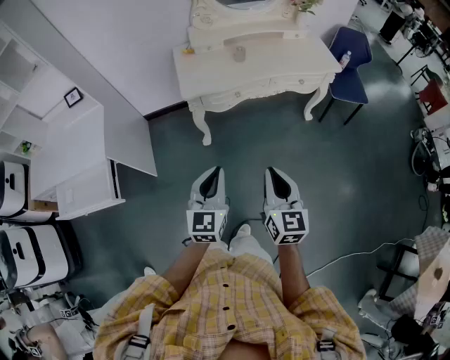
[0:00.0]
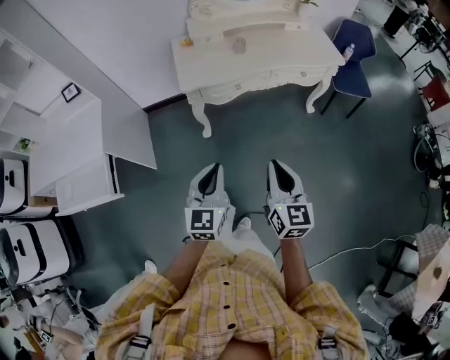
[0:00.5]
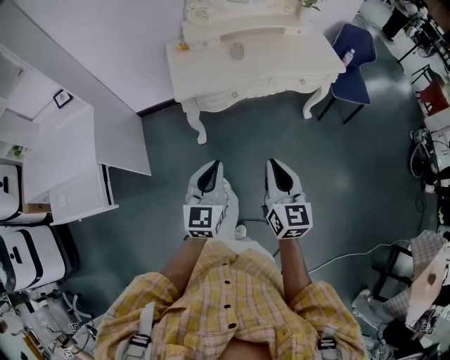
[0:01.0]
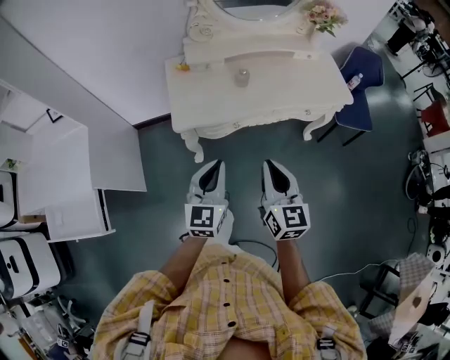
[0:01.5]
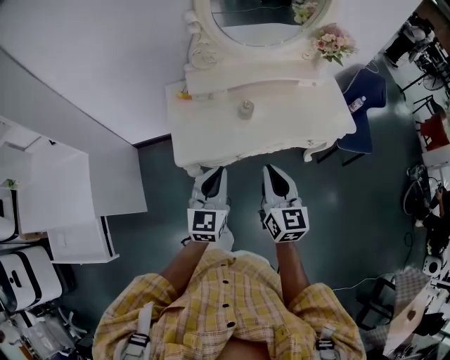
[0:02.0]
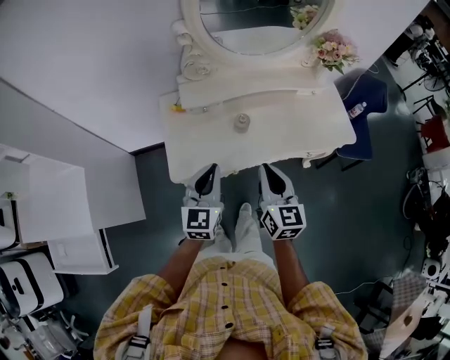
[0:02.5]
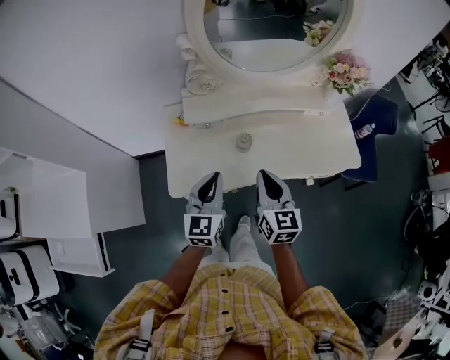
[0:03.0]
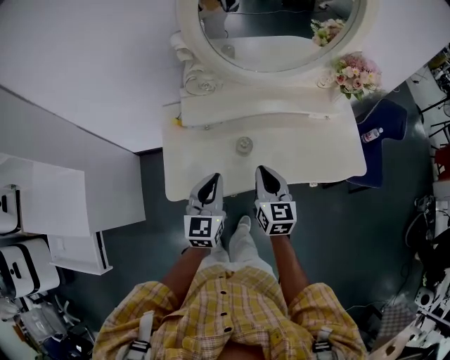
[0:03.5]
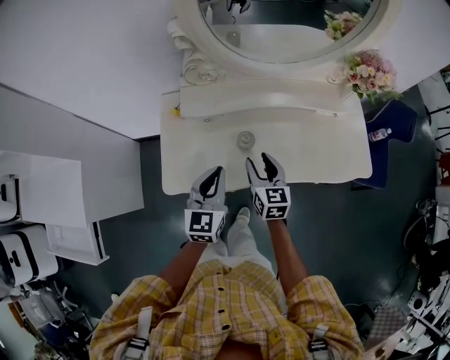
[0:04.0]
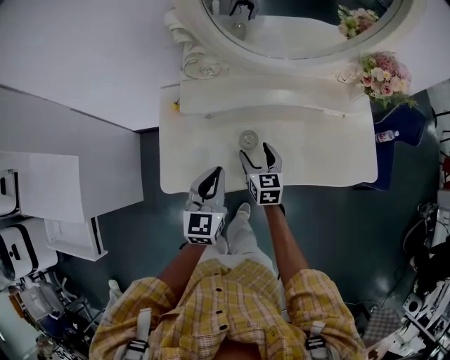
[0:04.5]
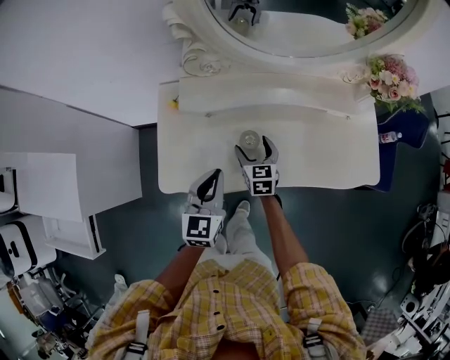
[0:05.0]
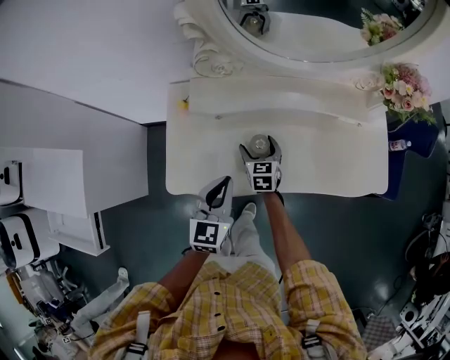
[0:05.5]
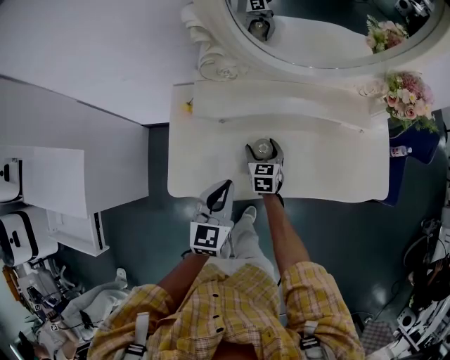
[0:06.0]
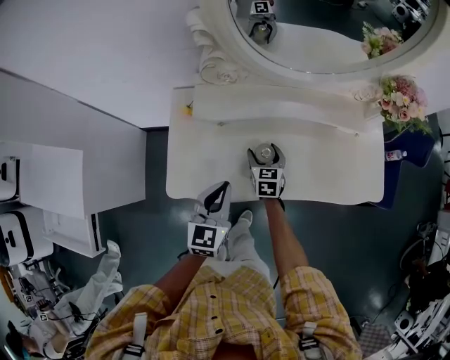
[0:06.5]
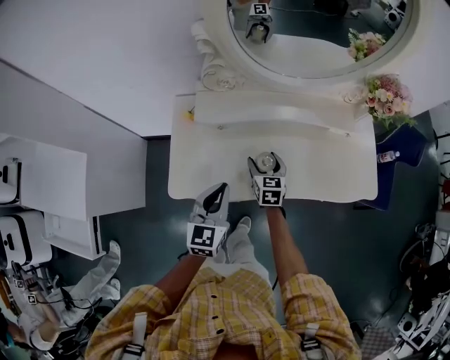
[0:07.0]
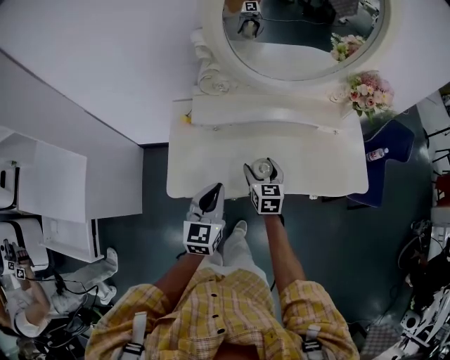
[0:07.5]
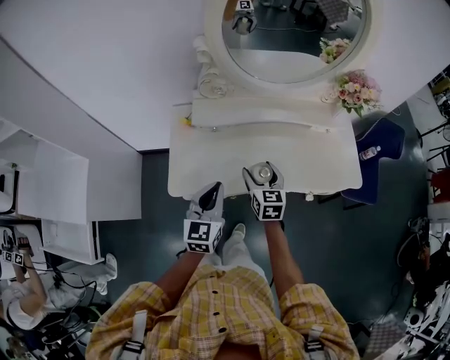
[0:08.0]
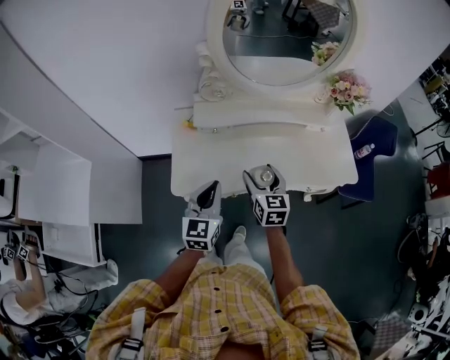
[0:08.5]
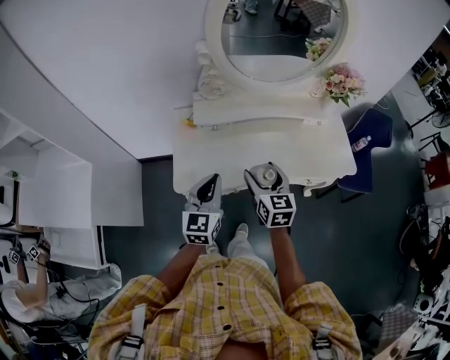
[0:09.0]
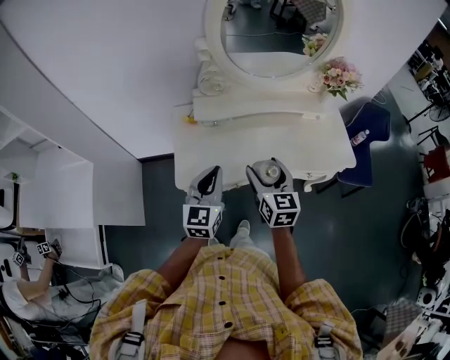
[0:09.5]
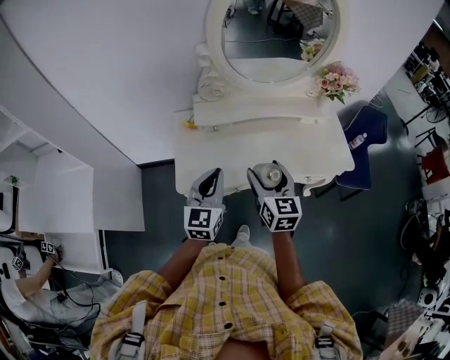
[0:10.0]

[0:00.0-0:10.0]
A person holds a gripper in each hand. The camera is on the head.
0.0 to 2.0 s: Both grippers move forward, roughly 35 cm.
2.0 to 4.0 s: The right gripper goes some 30 cm forward and downward, and opens its fingers. Meanwhile the left gripper is displaced forward by roughly 20 cm.
4.0 to 6.0 s: The left gripper travels downward by approximately 5 cm; the right gripper is displaced downward and forward by approximately 20 cm, and opens up.
6.0 to 8.0 s: The right gripper is displaced upward and backward by approximately 20 cm. Meanwhile the left gripper is displaced upward and backward by about 10 cm.
8.0 to 10.0 s: The left gripper goes about 5 cm upward. Meanwhile the right gripper shifts about 15 cm upward and backward.

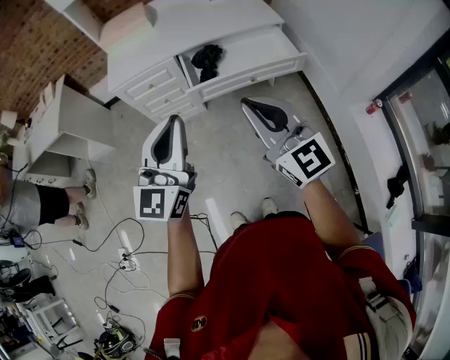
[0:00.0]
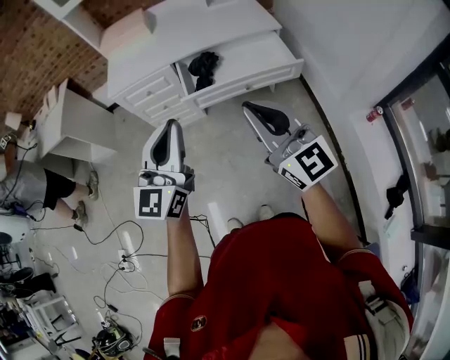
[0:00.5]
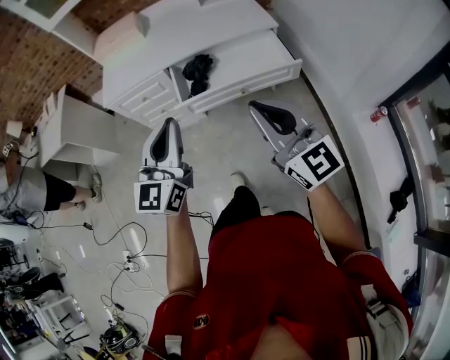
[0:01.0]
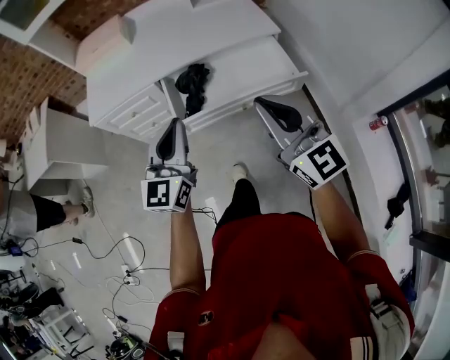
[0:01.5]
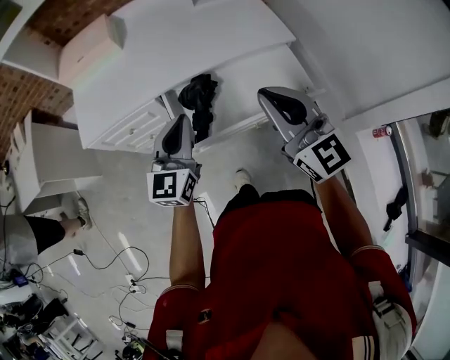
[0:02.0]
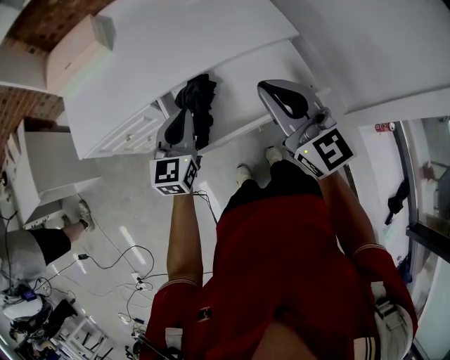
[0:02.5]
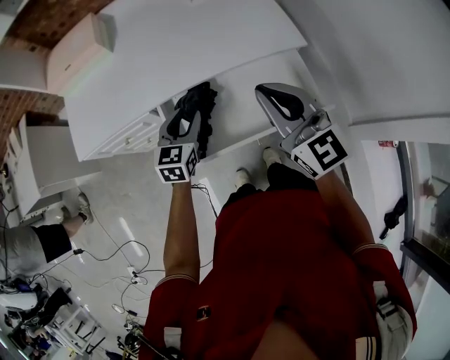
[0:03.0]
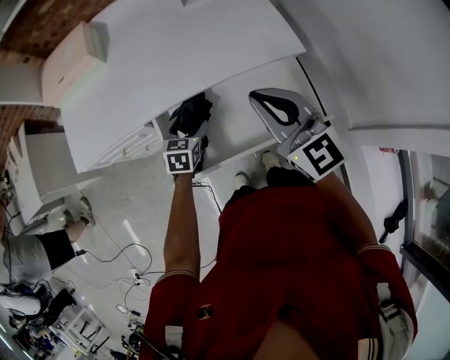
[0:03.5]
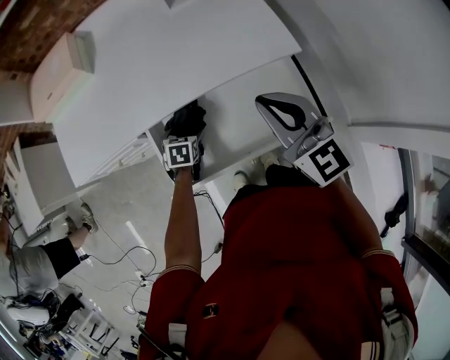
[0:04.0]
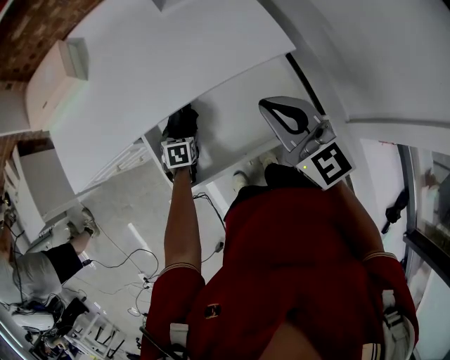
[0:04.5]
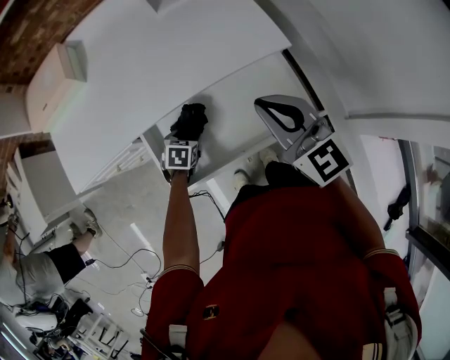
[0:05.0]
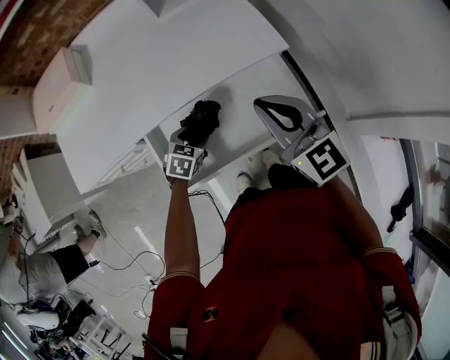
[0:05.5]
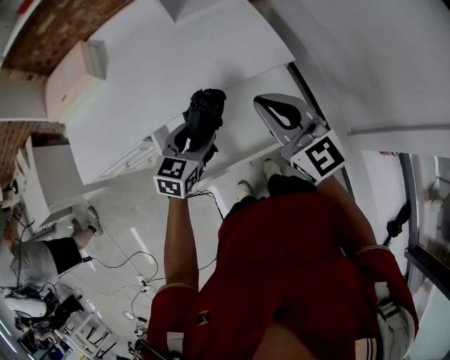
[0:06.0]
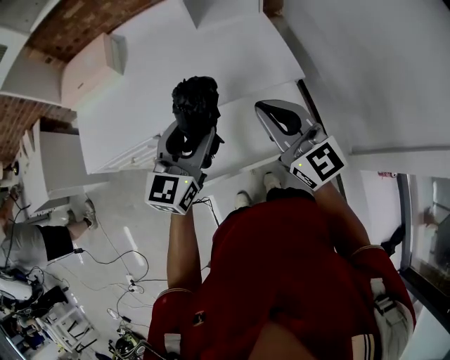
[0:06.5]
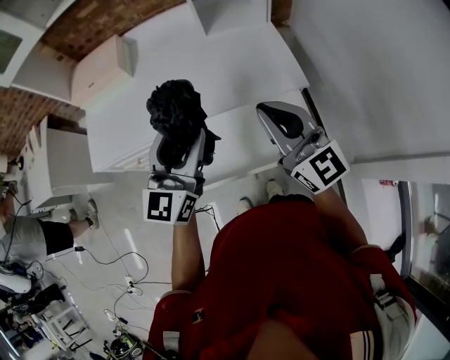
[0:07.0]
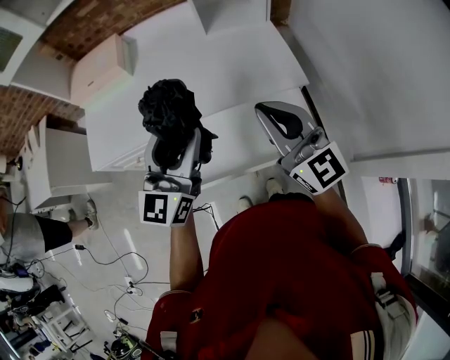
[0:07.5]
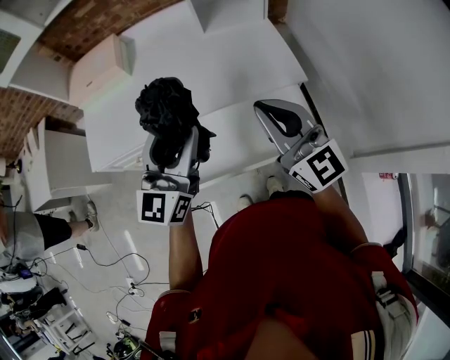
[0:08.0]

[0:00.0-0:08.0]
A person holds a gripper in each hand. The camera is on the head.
0.0 to 2.0 s: The left gripper travels forward and downward by some 40 cm. Meanwhile the right gripper moves forward, approximately 35 cm.
2.0 to 4.0 s: The right gripper is displaced forward, to the right and downward by approximately 20 cm, while the left gripper moves downward and forward, approximately 35 cm, tilts its fingers about 60 degrees downward, and opens.
4.0 to 6.0 s: The left gripper goes some 25 cm upward and to the right, rotates roughly 40 degrees, and closes up.
6.0 to 8.0 s: The left gripper is displaced upward by some 20 cm, and tips its fingers upward by approximately 40 degrees. Meanwhile the right gripper shifts approximately 5 cm upward.

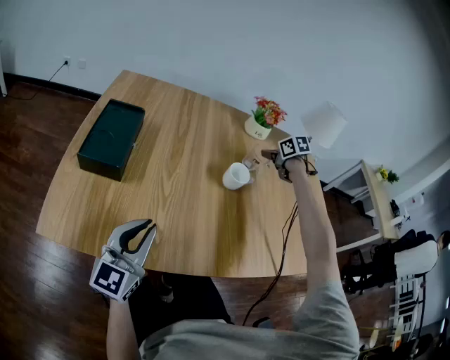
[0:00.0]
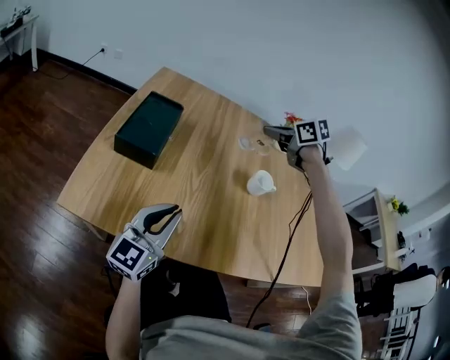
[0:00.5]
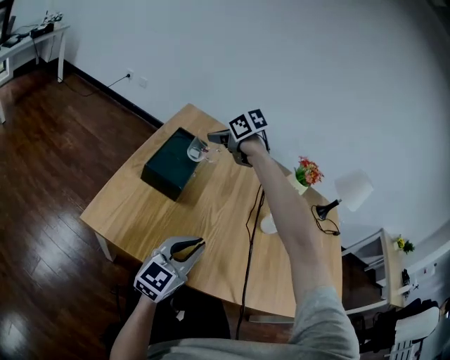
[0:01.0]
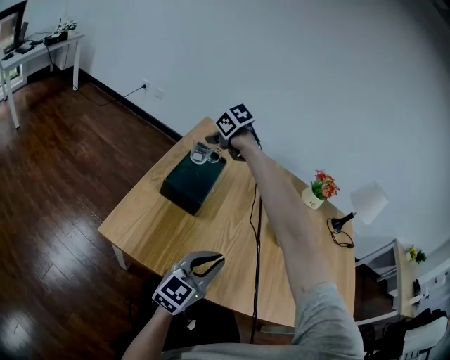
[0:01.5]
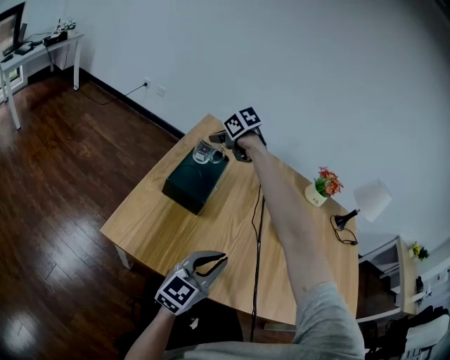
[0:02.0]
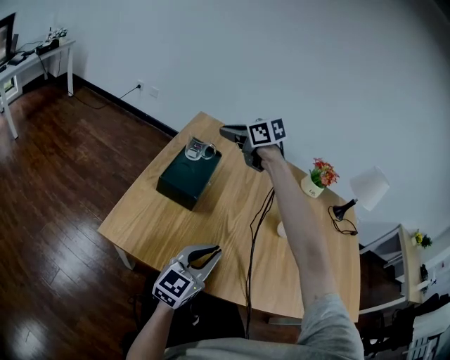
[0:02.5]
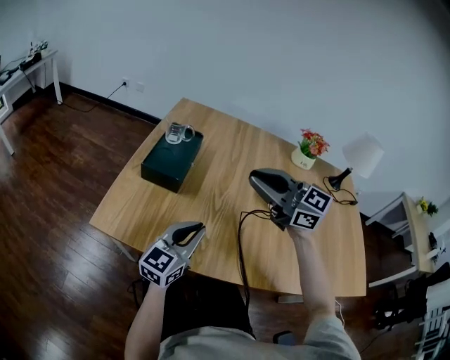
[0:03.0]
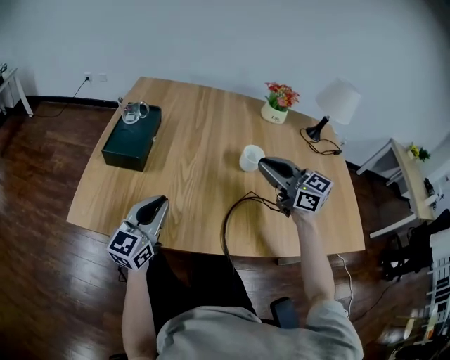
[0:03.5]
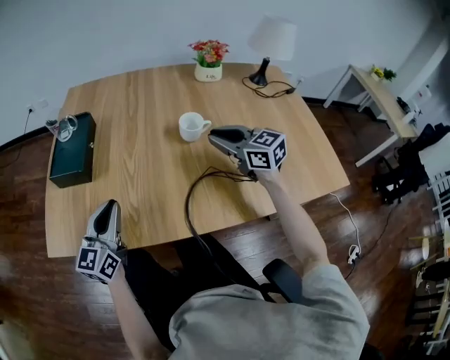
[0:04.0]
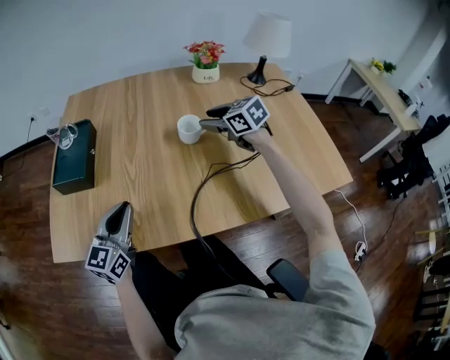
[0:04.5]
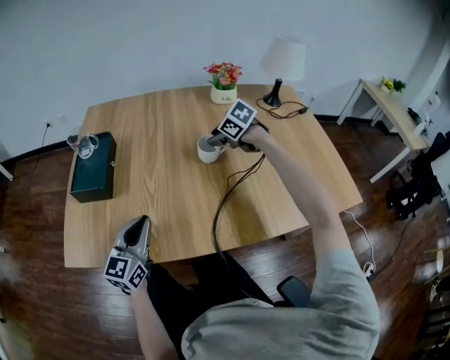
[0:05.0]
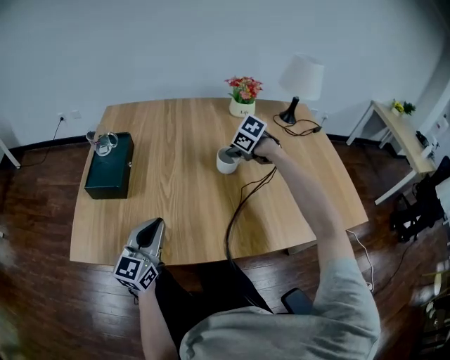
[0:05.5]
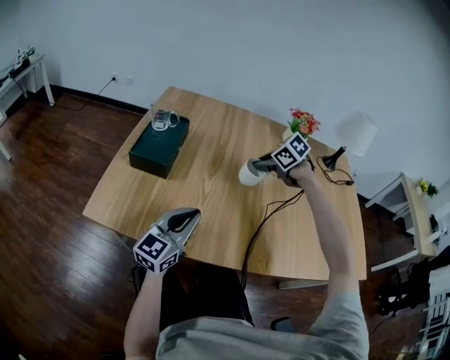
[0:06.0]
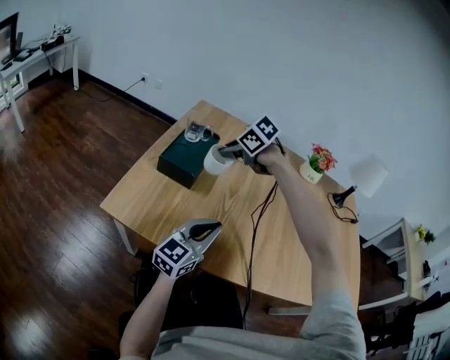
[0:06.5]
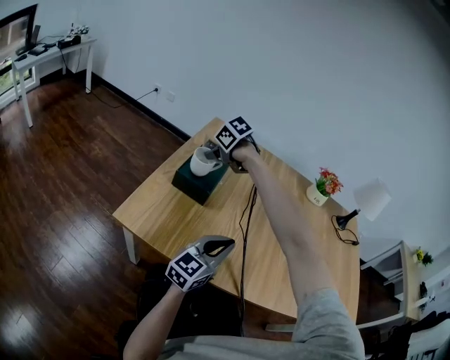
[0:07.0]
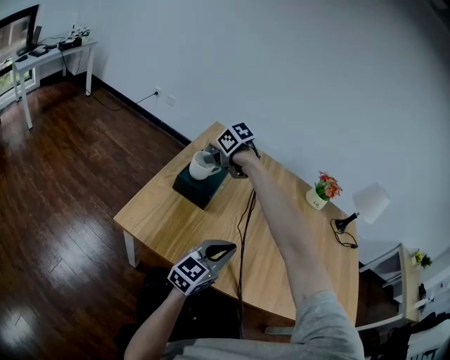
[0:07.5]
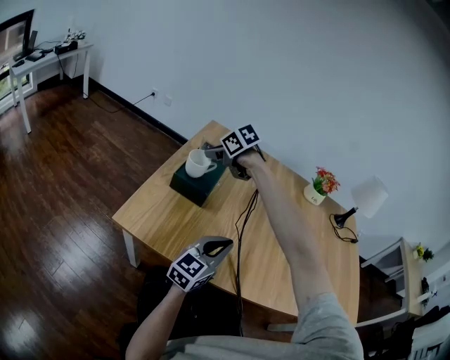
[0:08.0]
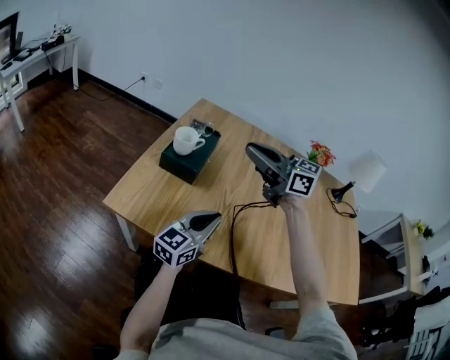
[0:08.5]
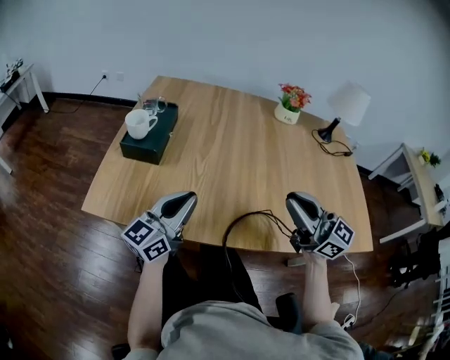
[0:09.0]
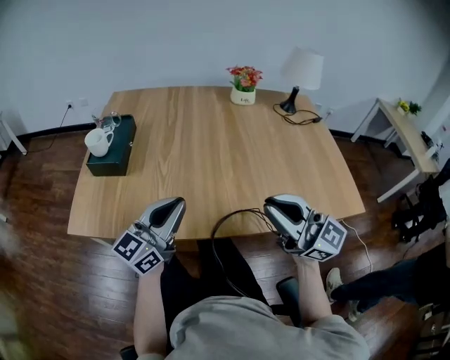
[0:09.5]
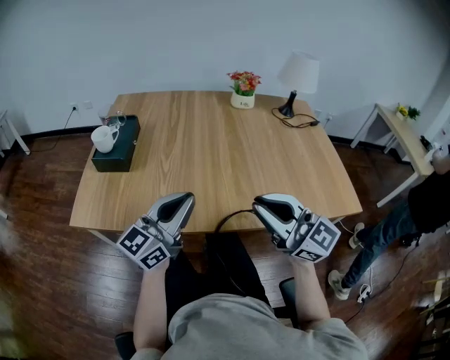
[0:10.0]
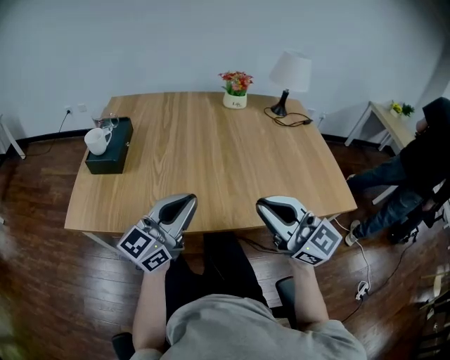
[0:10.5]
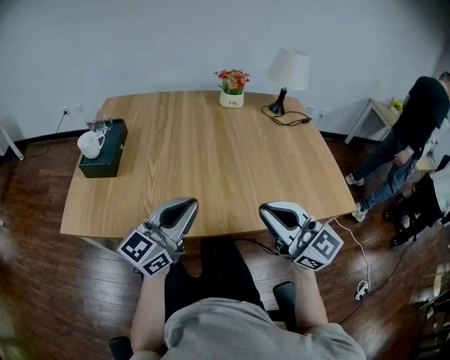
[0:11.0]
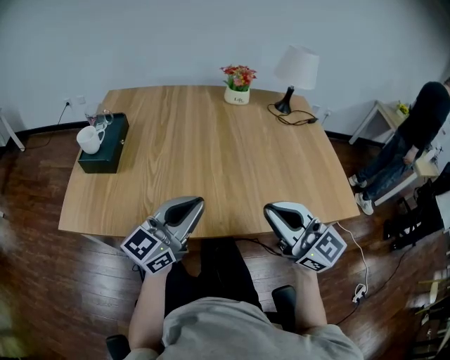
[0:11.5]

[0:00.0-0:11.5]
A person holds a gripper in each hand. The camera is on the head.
0.0 to 2.0 s: The right gripper heads to the left, covering some 50 cm, and swivels about 40 degrees.
2.0 to 4.0 s: The right gripper goes about 50 cm to the right and backward, and tilts its fingers roughly 40 degrees upward.
4.0 to 6.0 s: The right gripper travels forward and to the left by some 15 cm, angles its fingers downward, by roughly 40 degrees, and opens, then closes again.
6.0 to 7.5 s: The right gripper heads to the left and forward, covering approximately 35 cm.
7.5 to 9.5 s: The right gripper is displaced backward and to the right by approximately 60 cm, and tips its fingers upward by about 70 degrees. The left gripper goes about 10 cm backward, upward and to the right.
9.5 to 11.5 s: The left gripper heads to the right, covering about 10 cm.
